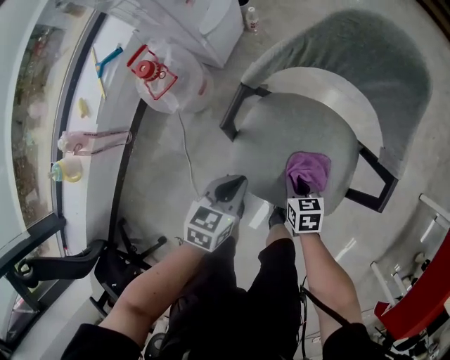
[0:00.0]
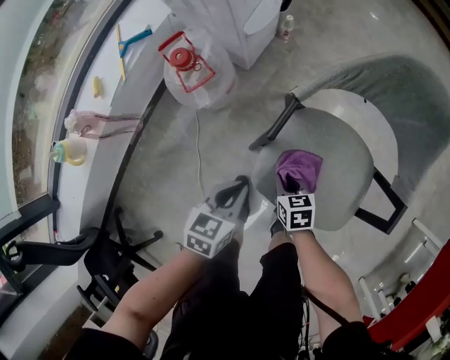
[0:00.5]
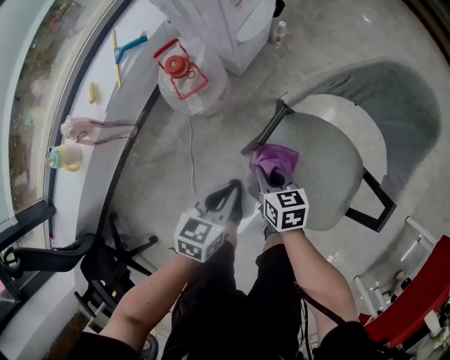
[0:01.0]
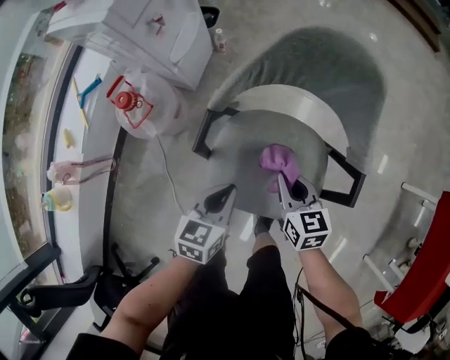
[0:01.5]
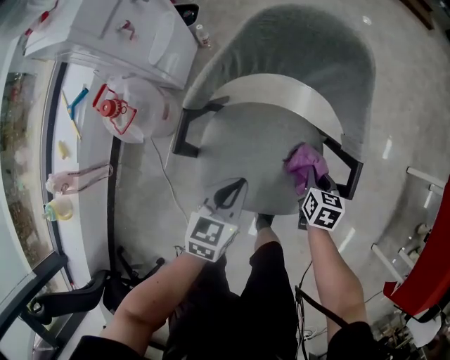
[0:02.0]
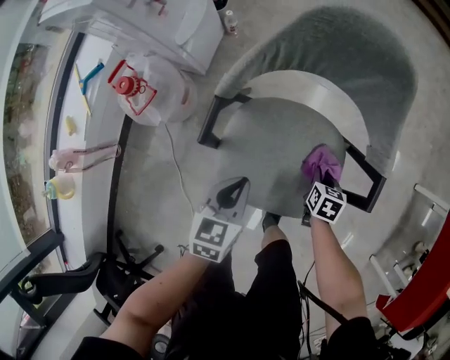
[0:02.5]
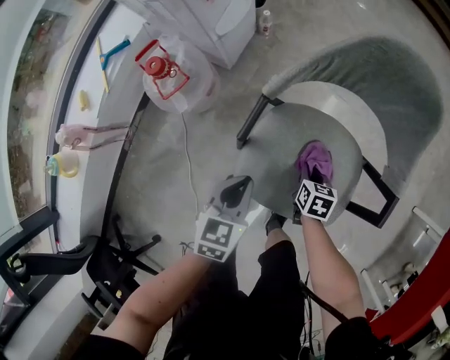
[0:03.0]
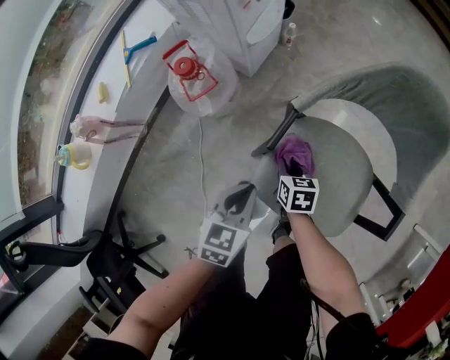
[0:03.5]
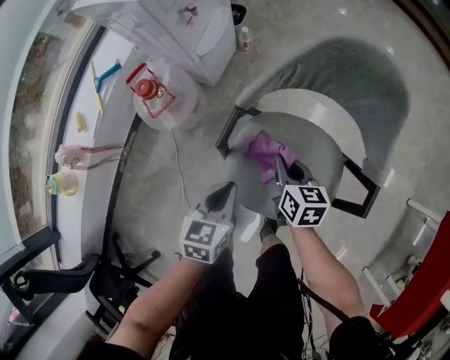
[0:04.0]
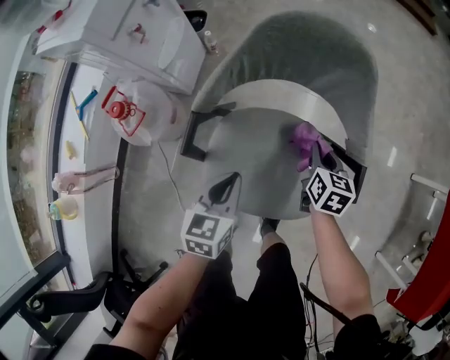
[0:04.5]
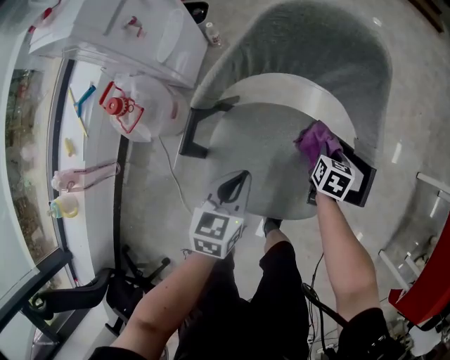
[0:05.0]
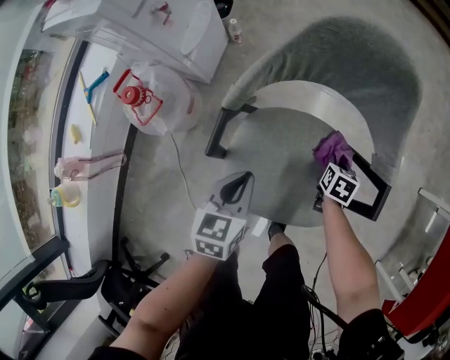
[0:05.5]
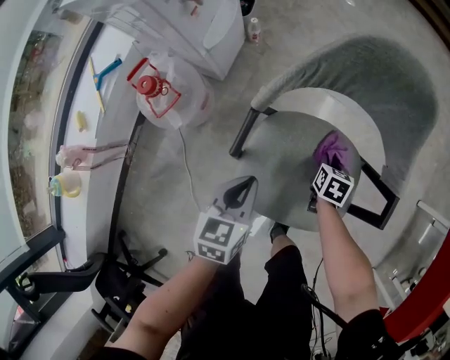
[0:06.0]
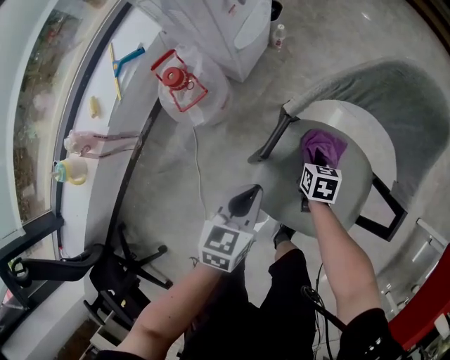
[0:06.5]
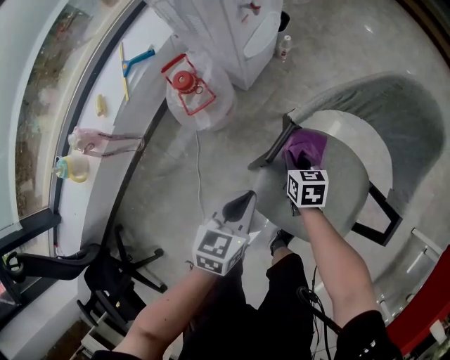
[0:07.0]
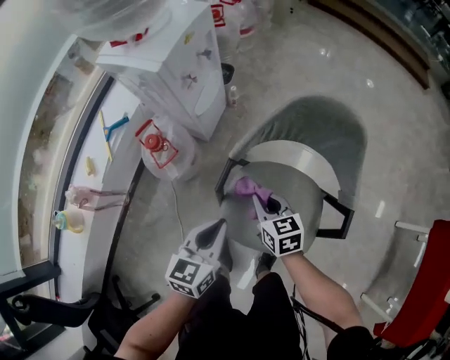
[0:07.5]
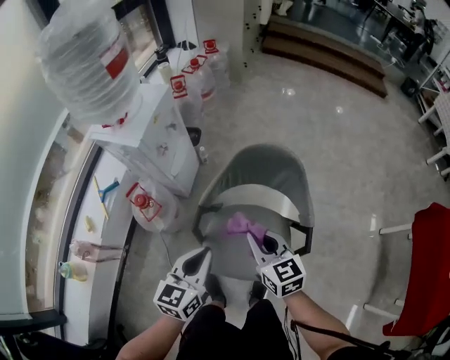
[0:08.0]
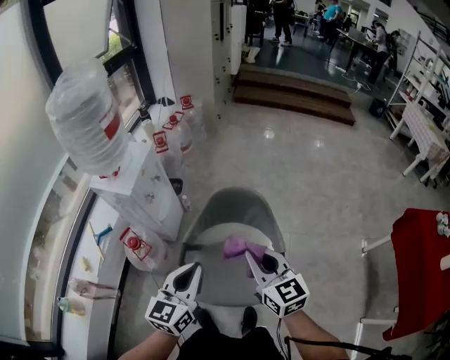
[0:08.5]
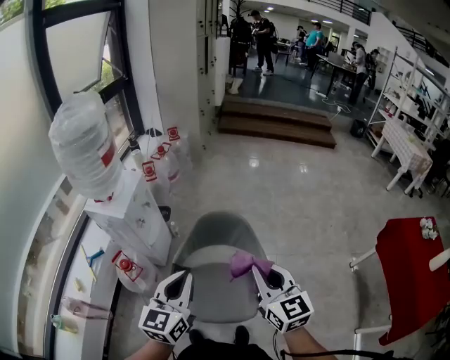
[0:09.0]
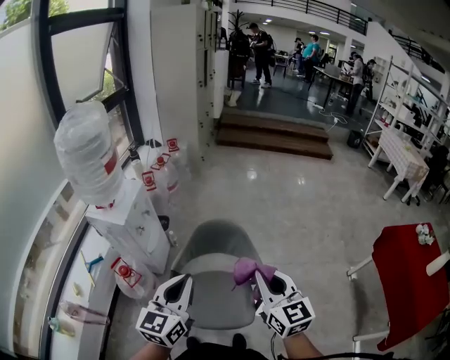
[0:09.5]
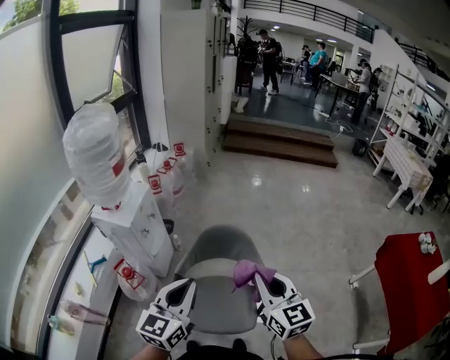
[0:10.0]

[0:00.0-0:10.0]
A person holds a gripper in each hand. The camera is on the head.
0:00.0 to 0:02.0: The right gripper moves some 20 cm, and turns by approximately 30 degrees. The left gripper changes place by approximately 10 cm.
0:02.0 to 0:04.0: The left gripper moves some 10 cm; the right gripper ends up roughly 25 cm from where it was, and turns by some 30 degrees.
0:04.0 to 0:06.0: The right gripper travels downward by some 15 cm, and swivels approximately 30 degrees.
0:06.0 to 0:08.0: Both grippers move upward, approximately 35 cm. The left gripper changes its angle by about 20 degrees, while the right gripper angles its fingers upward, by some 40 degrees.
0:08.0 to 0:10.0: The left gripper shifts about 25 cm upward. The right gripper heads upward and to the right, covering about 30 cm, and swivels approximately 20 degrees.

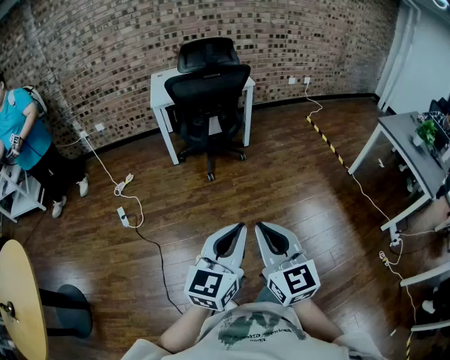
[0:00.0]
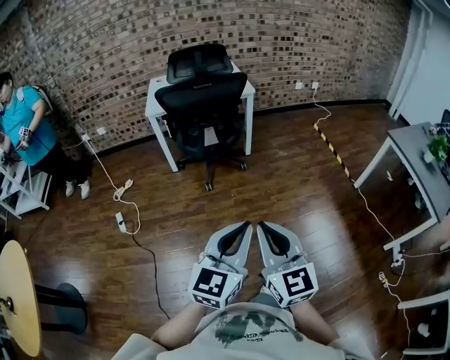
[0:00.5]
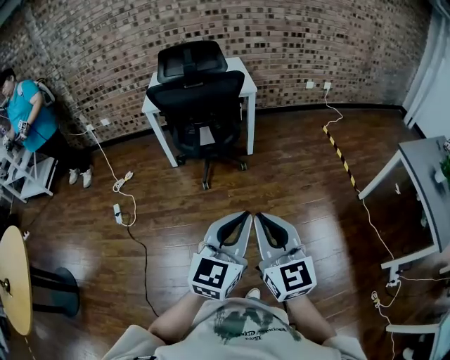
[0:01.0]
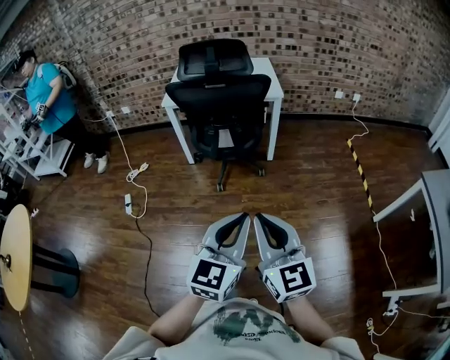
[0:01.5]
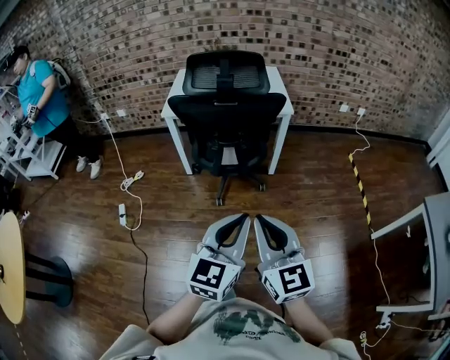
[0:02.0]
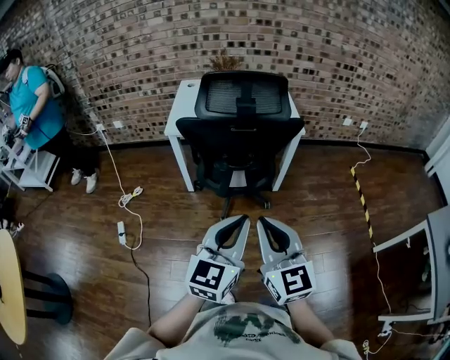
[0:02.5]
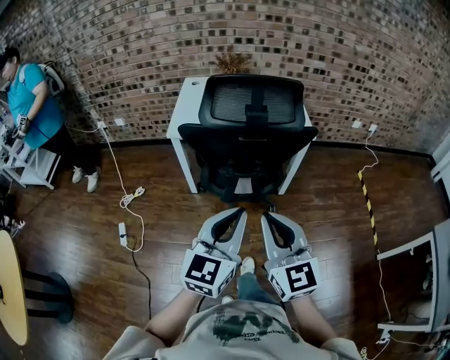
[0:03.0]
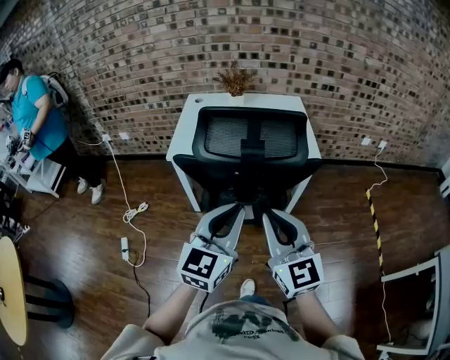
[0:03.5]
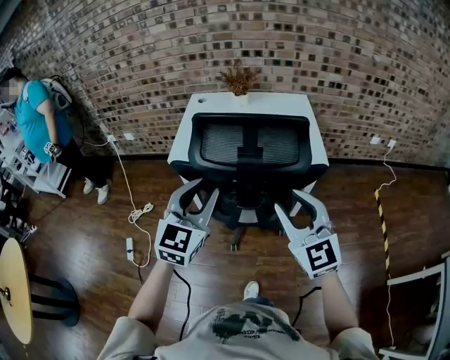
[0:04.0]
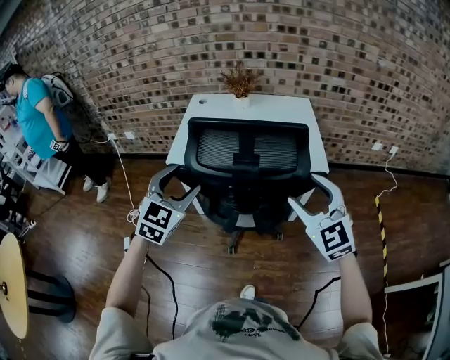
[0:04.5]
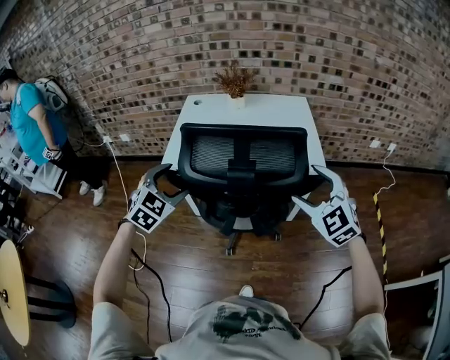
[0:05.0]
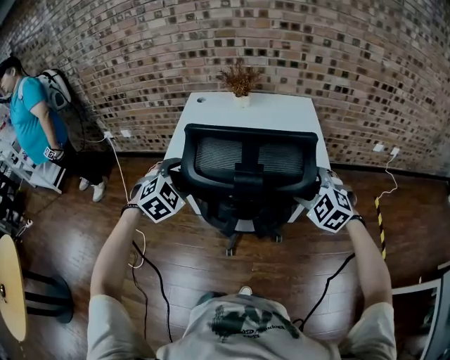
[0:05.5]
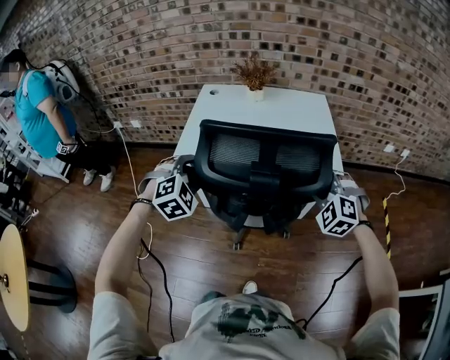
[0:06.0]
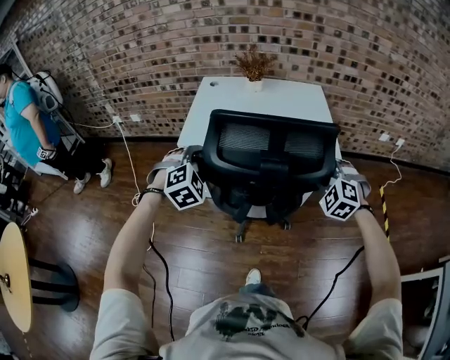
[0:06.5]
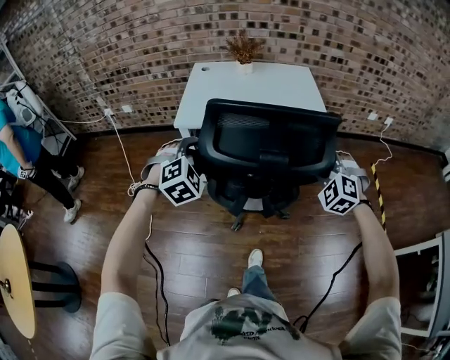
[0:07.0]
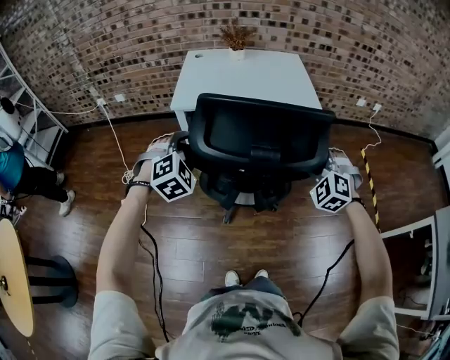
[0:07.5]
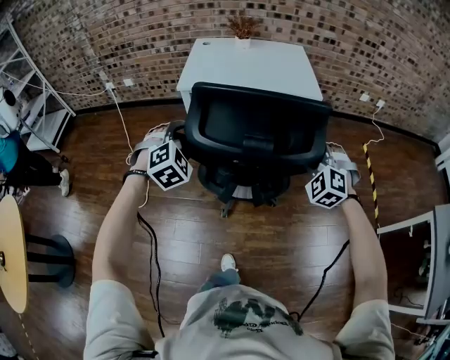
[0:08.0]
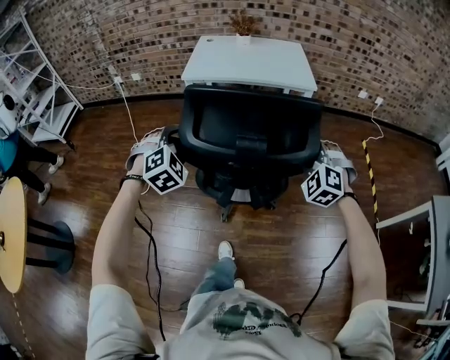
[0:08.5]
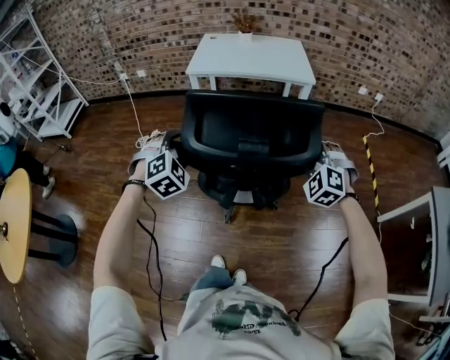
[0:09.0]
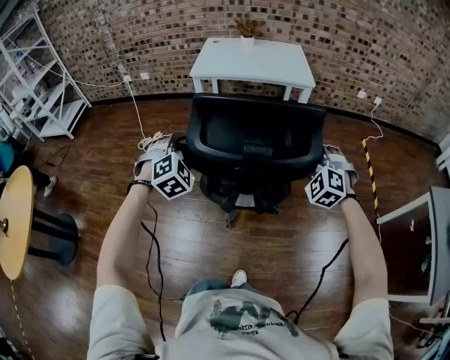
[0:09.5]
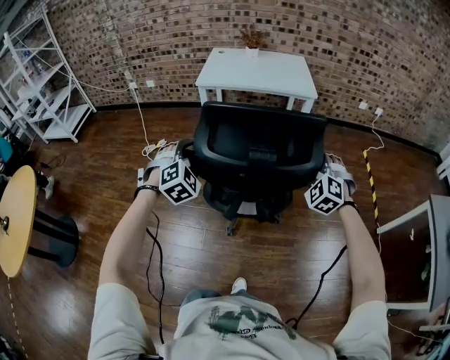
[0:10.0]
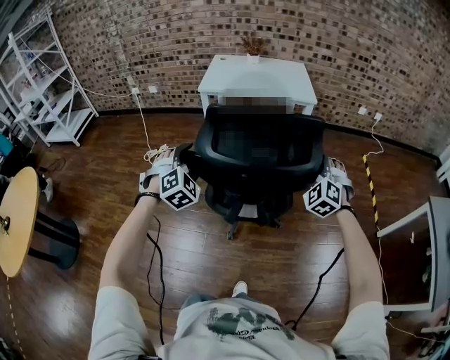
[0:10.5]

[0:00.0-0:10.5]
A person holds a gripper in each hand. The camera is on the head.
0:00.0 to 0:02.0: The grippers both shift forward by about 40 cm.
0:02.0 to 0:04.0: The two grippers go some 40 cm forward. The right gripper rotates roughly 20 degrees, and opens its fingers.
0:04.0 to 0:06.5: The right gripper is displaced downward, forward and to the right by approximately 20 cm, tilts its fingers approximately 40 degrees downward, and opens and closes again. The left gripper heads downward, forward and to the left, covering about 15 cm, points its fingers about 40 degrees further downward, and opens up.
0:06.5 to 0:08.5: Both grippers move backward, about 35 cm.
0:08.5 to 0:10.5: The grippers both shift backward by approximately 10 cm. The right gripper opens its fingers.

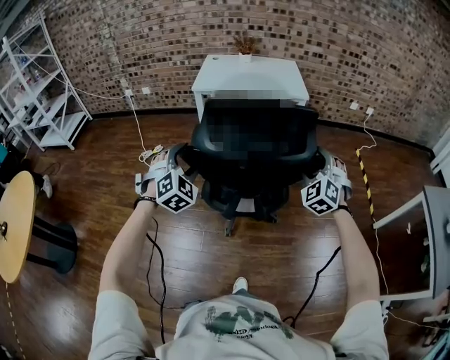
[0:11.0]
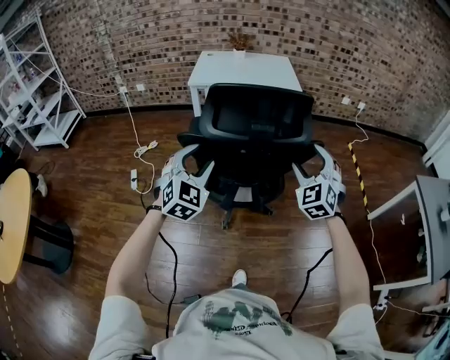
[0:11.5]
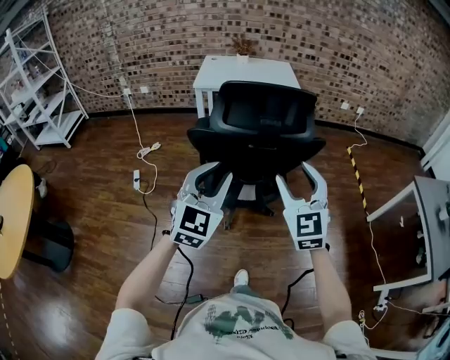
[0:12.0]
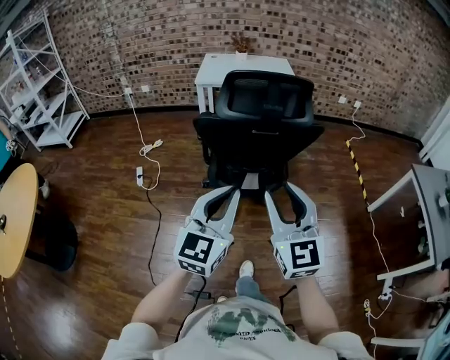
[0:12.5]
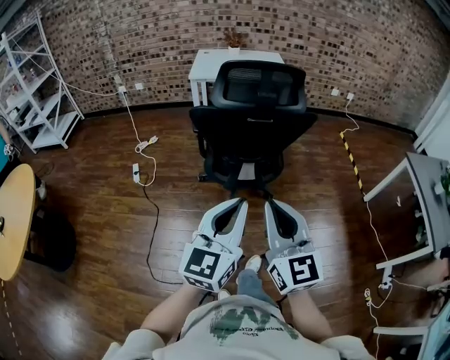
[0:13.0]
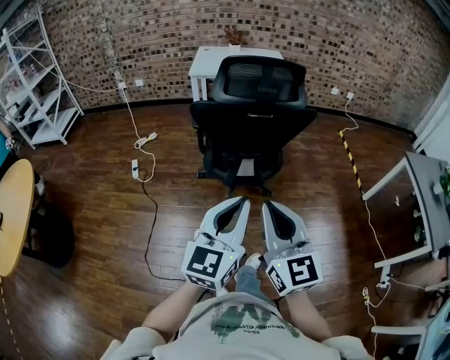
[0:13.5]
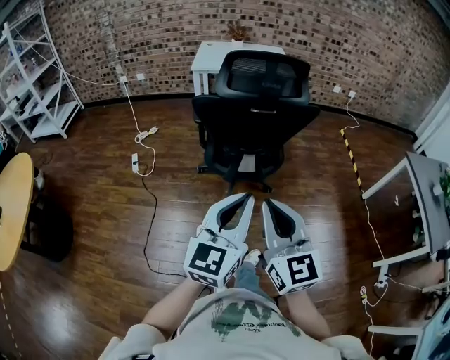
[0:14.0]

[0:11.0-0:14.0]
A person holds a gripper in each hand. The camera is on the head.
0:11.0 to 0:12.5: The left gripper is displaced backward by some 30 cm, rotates approximately 60 degrees, and closes up; the right gripper moves backward and to the left, roughly 35 cm, rolls clockwise, seen from behind, by approximately 40 degrees, and closes.
0:12.5 to 0:14.0: The grippers both shift backward by about 10 cm. The right gripper closes up.

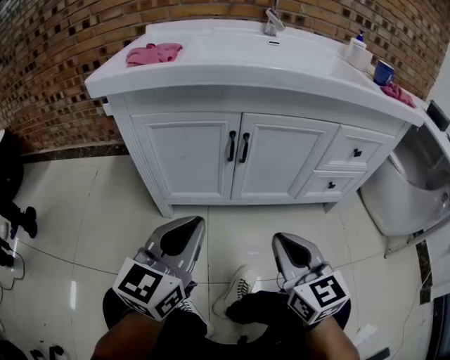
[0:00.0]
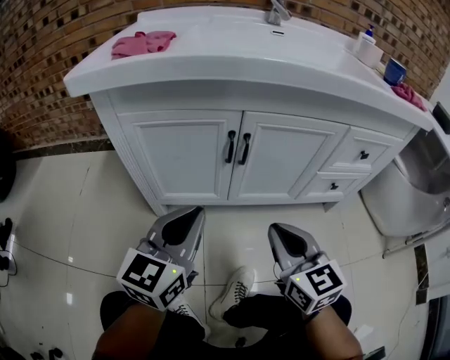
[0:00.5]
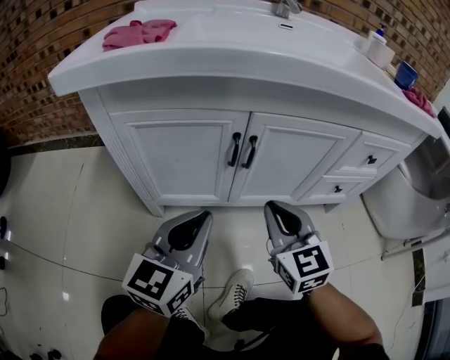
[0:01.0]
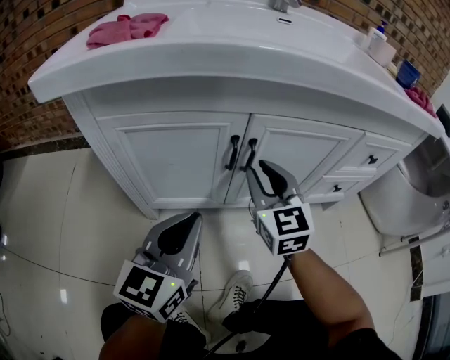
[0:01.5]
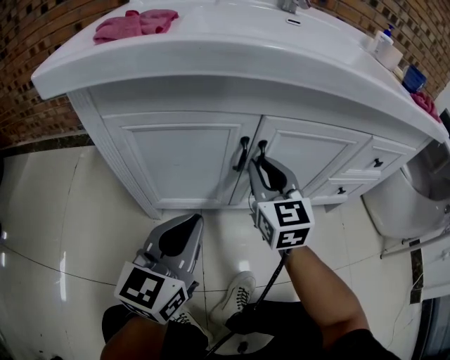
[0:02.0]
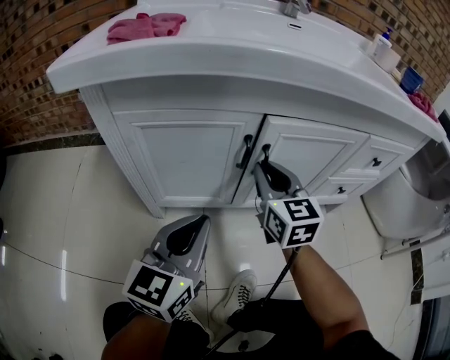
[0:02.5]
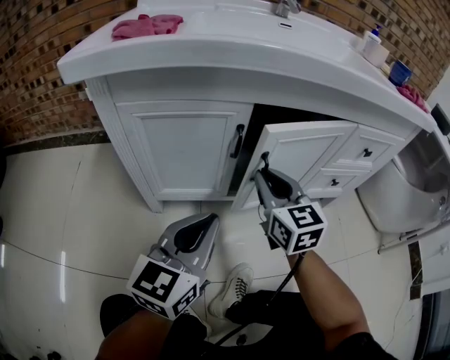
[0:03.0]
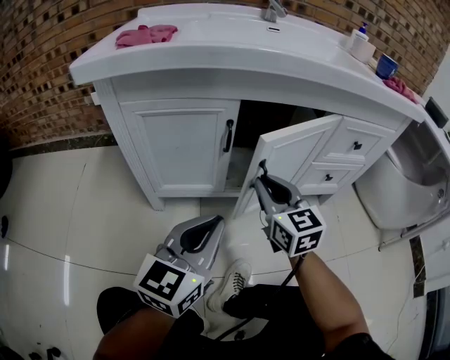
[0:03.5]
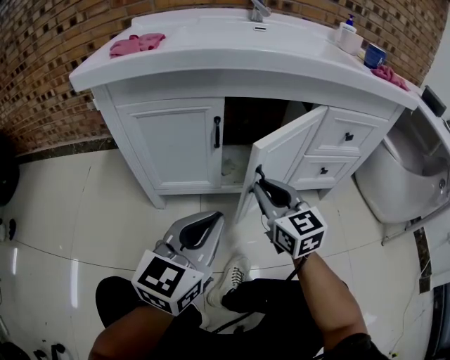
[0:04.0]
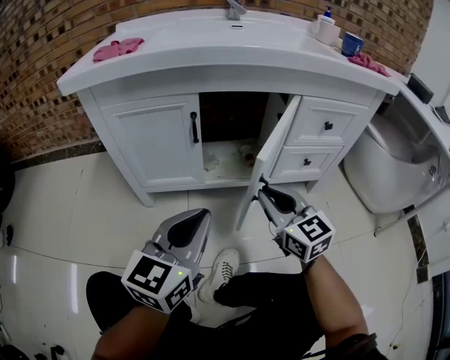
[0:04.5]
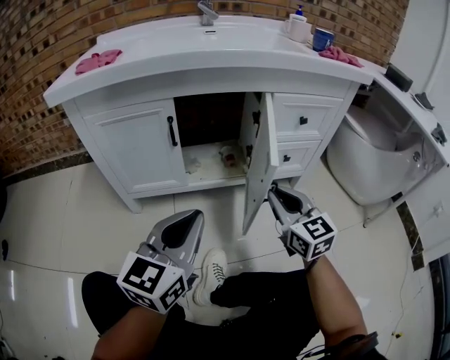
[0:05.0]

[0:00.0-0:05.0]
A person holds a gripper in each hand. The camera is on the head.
0:00.0 to 0:02.5: The right gripper shifts about 25 cm forward. The left gripper travels forward and downward by some 10 cm.
0:02.5 to 0:05.0: Both grippers travel together to the right and backward, approximately 25 cm.
